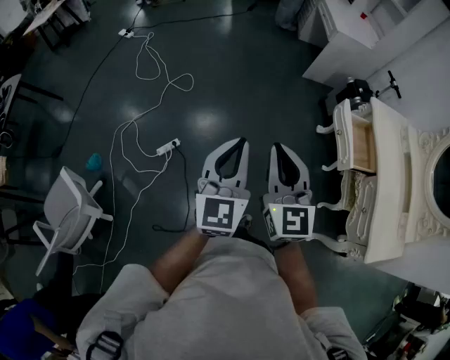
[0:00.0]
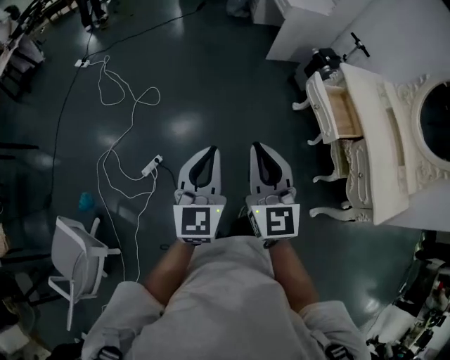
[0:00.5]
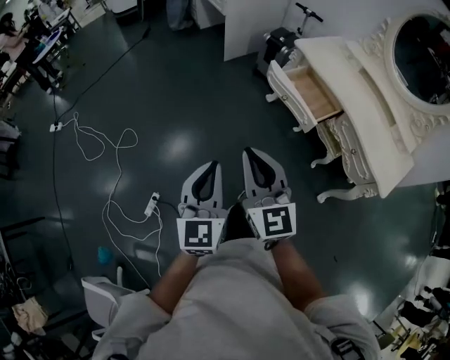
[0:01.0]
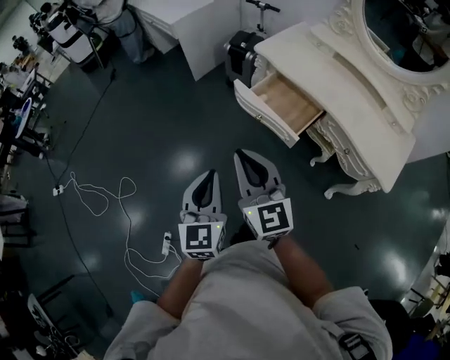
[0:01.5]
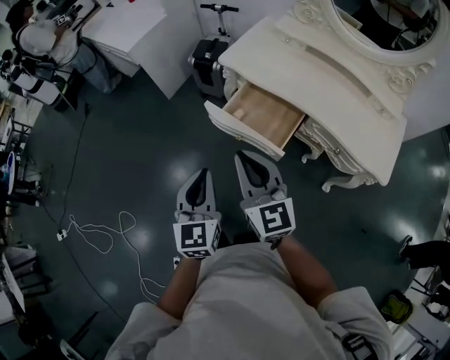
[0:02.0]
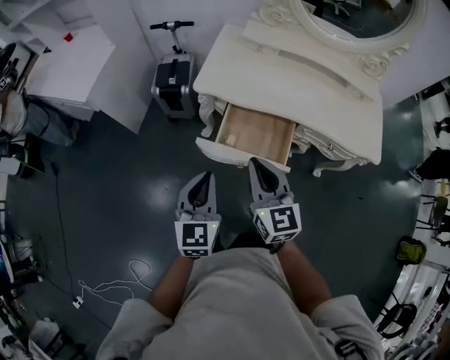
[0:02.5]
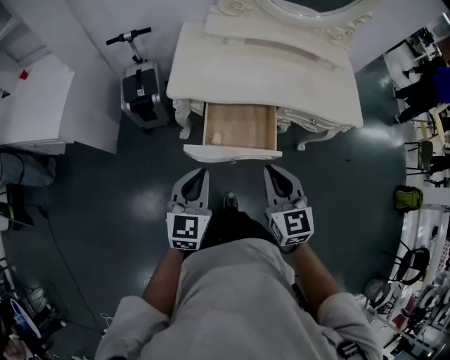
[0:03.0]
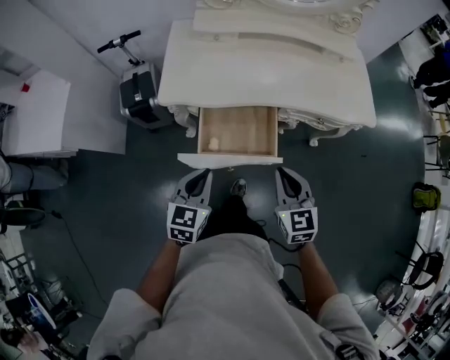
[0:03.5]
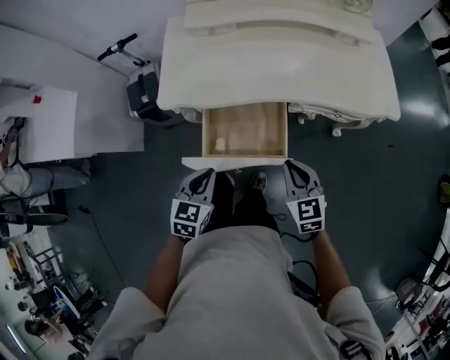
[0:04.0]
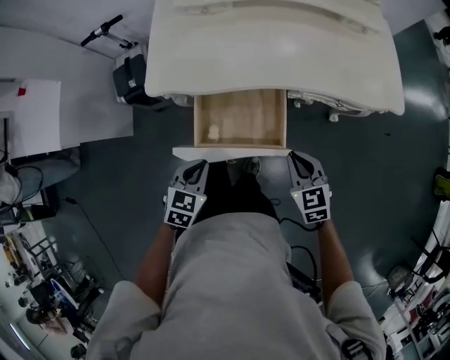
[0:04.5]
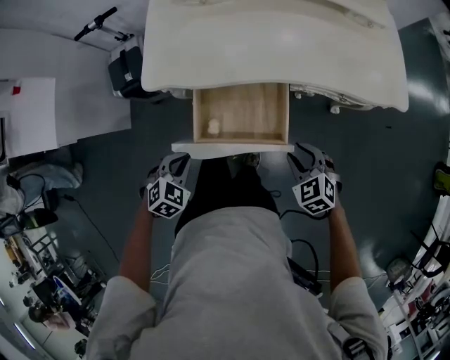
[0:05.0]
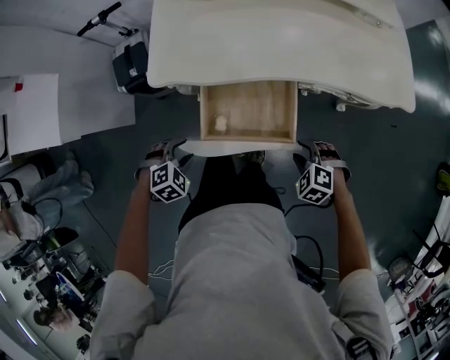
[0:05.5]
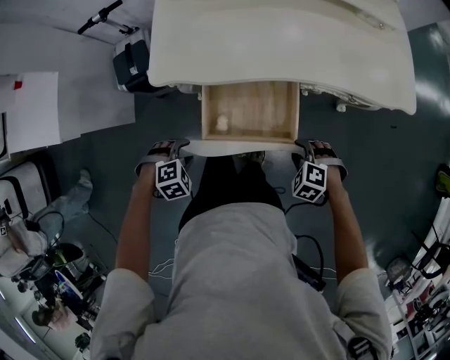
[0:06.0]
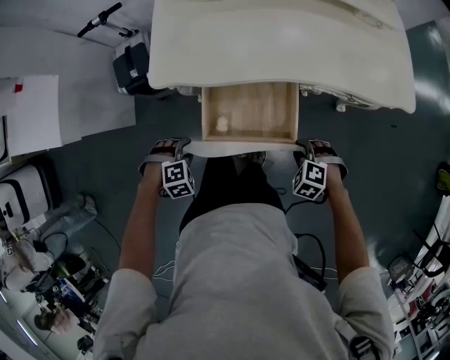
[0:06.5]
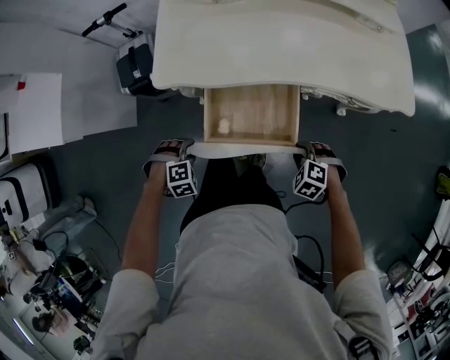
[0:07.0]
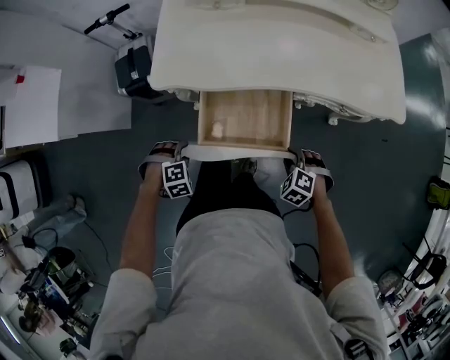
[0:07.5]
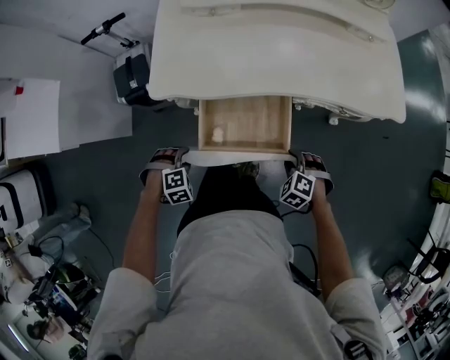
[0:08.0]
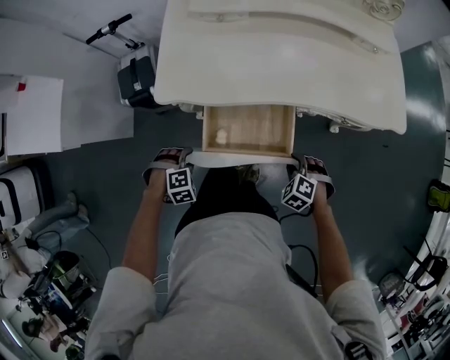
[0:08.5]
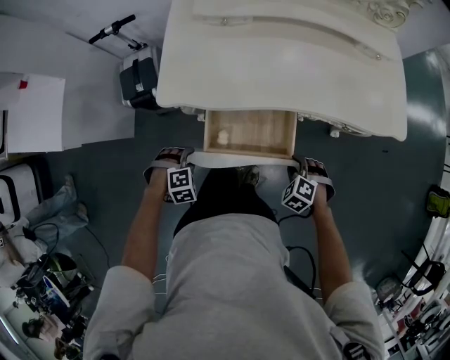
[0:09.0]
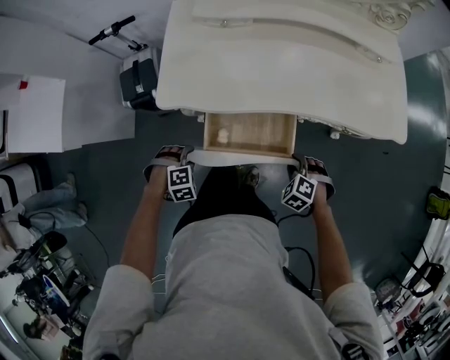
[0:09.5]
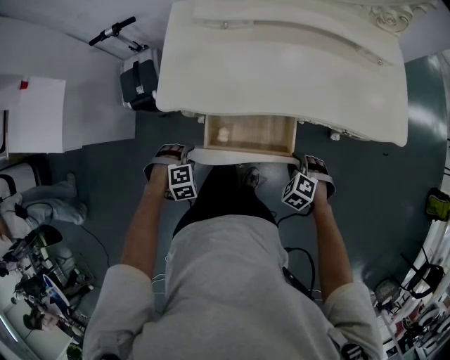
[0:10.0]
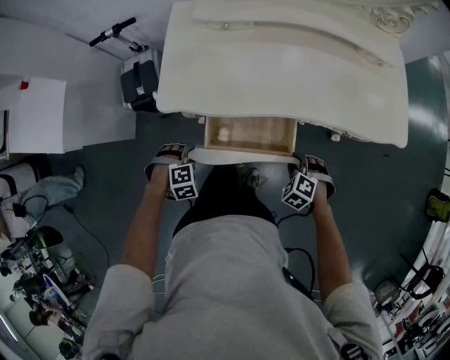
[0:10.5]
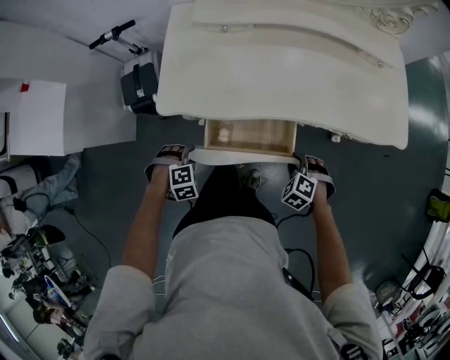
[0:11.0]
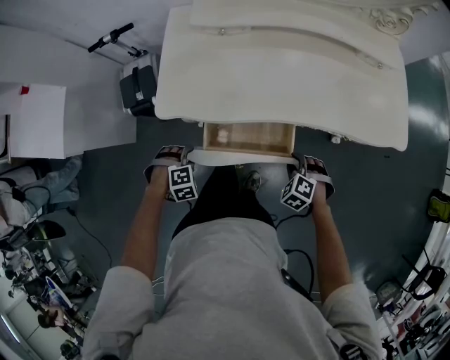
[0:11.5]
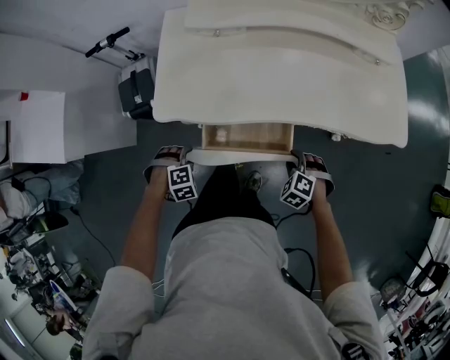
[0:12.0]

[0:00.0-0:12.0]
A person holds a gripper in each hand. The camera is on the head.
0:00.0 to 0:02.0: The pair of grippers is taken approximately 50 cm. The right gripper swivels some 50 degrees. The left gripper changes its angle by approximately 50 degrees.
0:02.0 to 0:04.0: The left gripper moves about 30 cm, and changes its angle by some 60 degrees, while the right gripper goes approximately 20 cm downward, and swivels some 50 degrees.
0:04.0 to 0:06.0: The grippers both shift downward by some 15 cm. The left gripper points its fingers some 40 degrees further downward, and opens. The right gripper angles its fingers downward, by some 40 degrees, and opens its fingers.
0:06.0 to 0:08.0: The grippers make only small movements.
0:08.0 to 0:10.0: The left gripper moves approximately 5 cm. Meanwhile the right gripper changes place by some 5 cm.
0:10.0 to 0:12.0: The grippers move only a little.

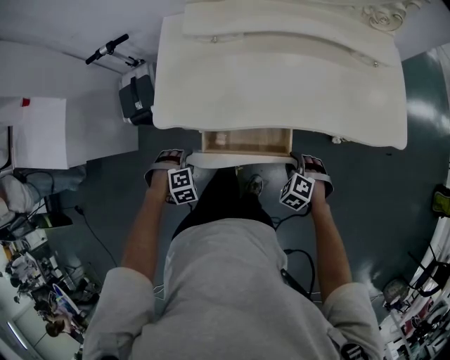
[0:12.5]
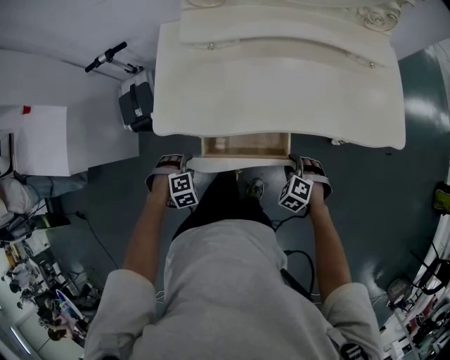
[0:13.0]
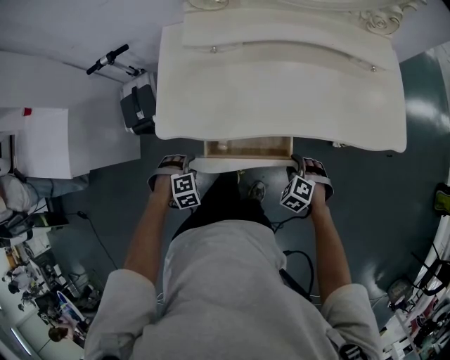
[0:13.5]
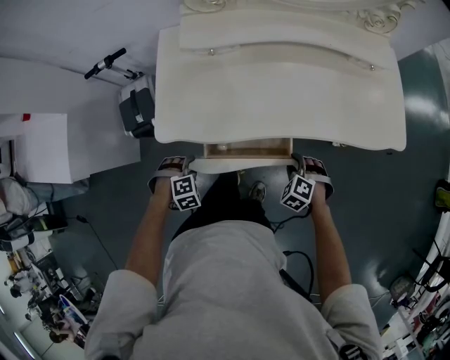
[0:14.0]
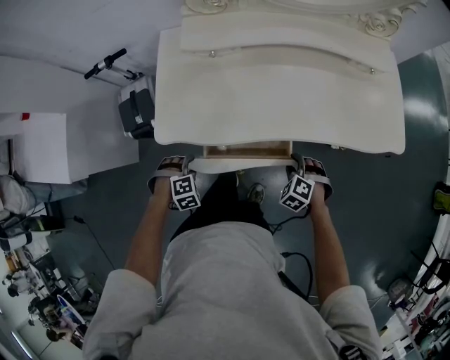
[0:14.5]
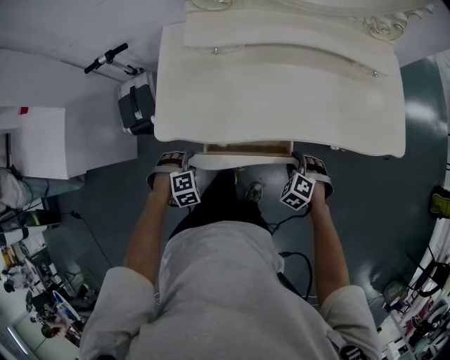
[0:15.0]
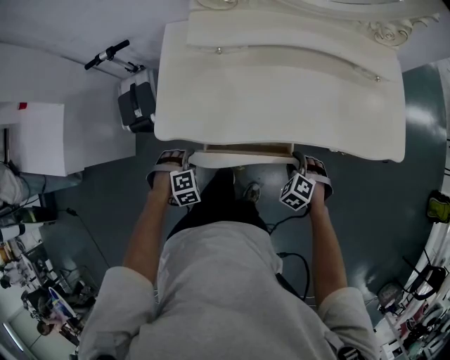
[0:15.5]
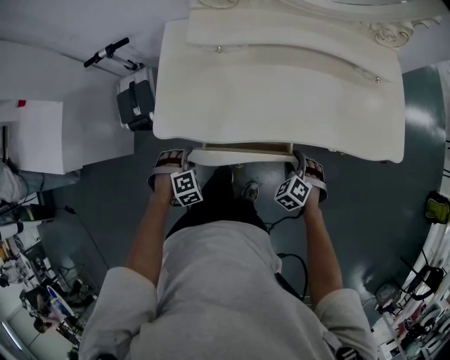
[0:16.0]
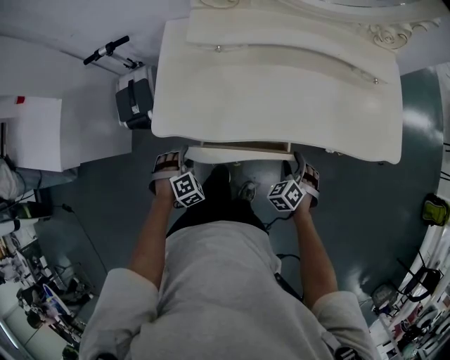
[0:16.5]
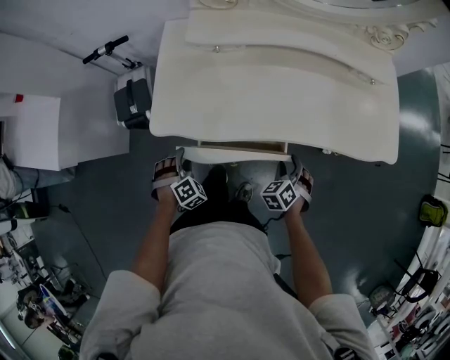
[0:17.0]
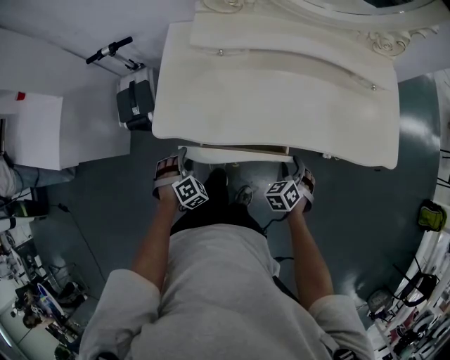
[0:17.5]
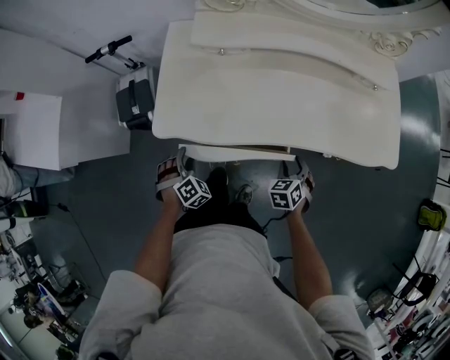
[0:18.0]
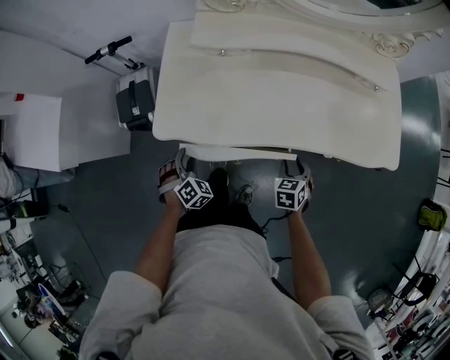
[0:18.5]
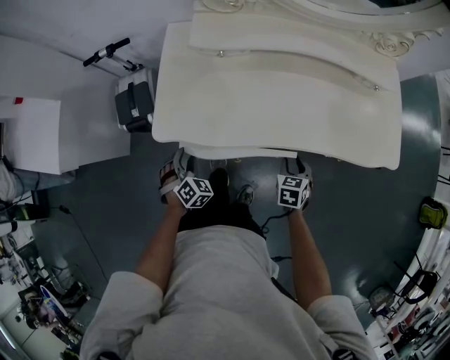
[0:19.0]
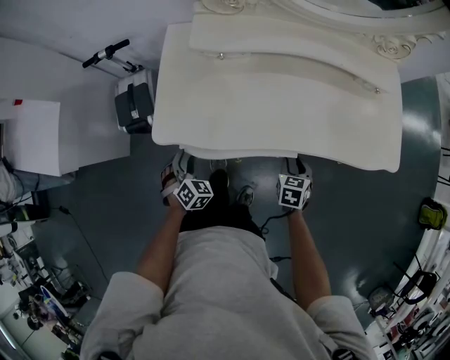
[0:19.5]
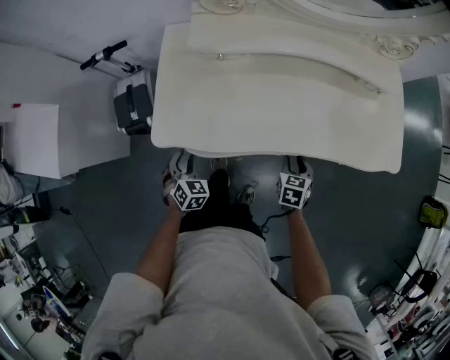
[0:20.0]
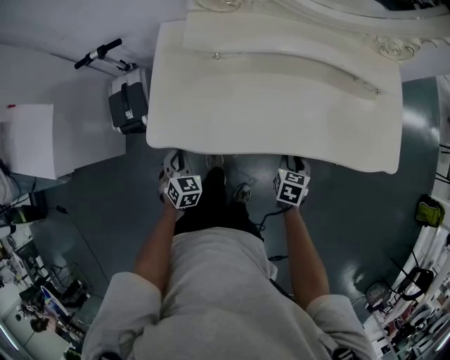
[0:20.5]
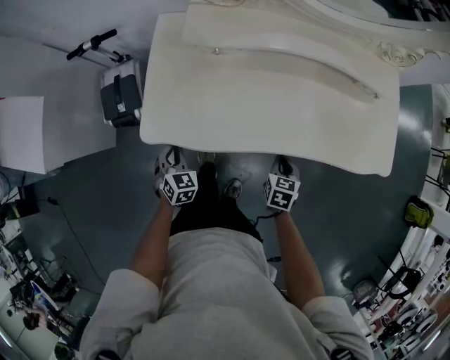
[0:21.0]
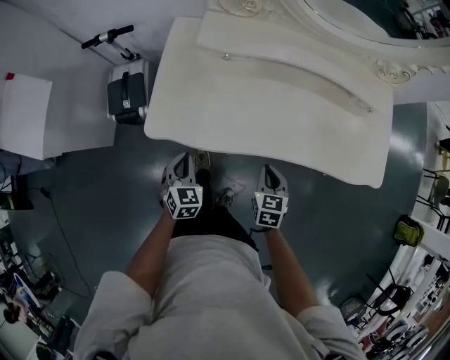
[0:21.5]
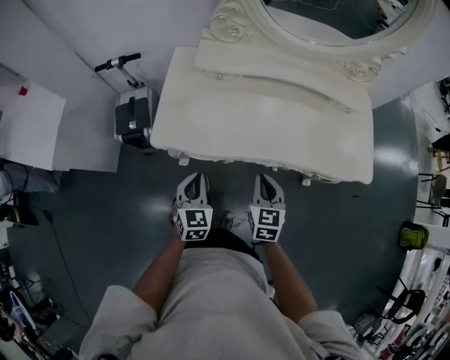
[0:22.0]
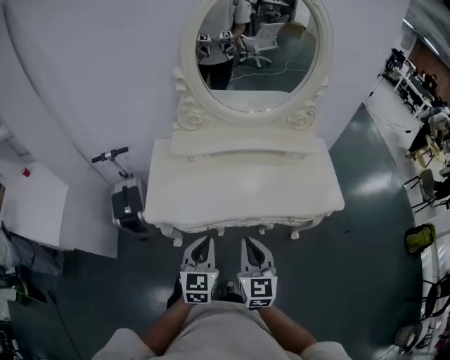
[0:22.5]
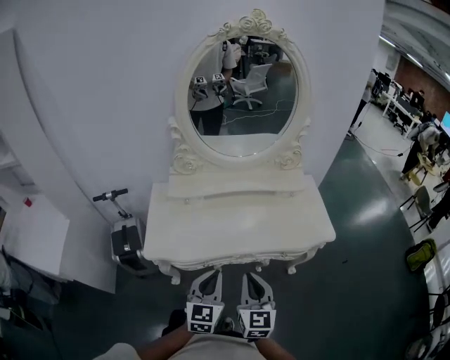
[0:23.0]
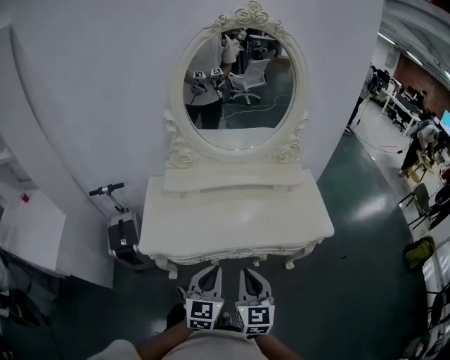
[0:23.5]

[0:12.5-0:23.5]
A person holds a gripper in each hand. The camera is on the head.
0:12.5 to 0:16.0: The grippers move only a little.
0:16.0 to 0:18.0: The right gripper turns by about 30 degrees. The left gripper changes its angle by roughly 30 degrees.
0:18.0 to 0:20.0: The right gripper rotates about 20 degrees. Meanwhile the left gripper turns by some 30 degrees.
0:20.0 to 0:21.5: The right gripper travels to the left by about 5 cm, and closes; the left gripper shifts by some 5 cm, and closes.
0:21.5 to 0:23.5: The left gripper is displaced upward and to the right by approximately 35 cm, and changes its angle by some 40 degrees; the right gripper shifts roughly 30 cm upward and backward, and tips its fingers upward by some 40 degrees.

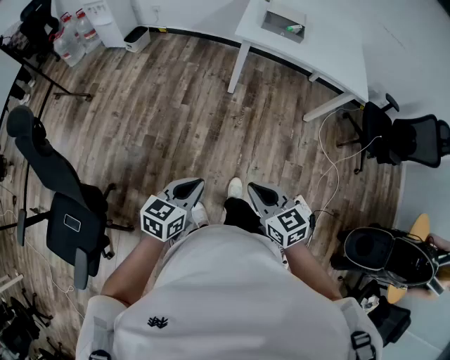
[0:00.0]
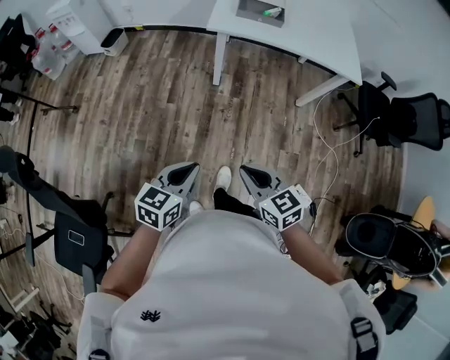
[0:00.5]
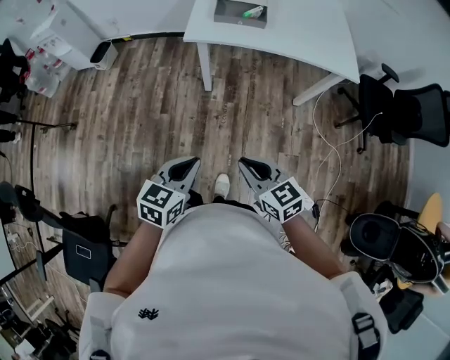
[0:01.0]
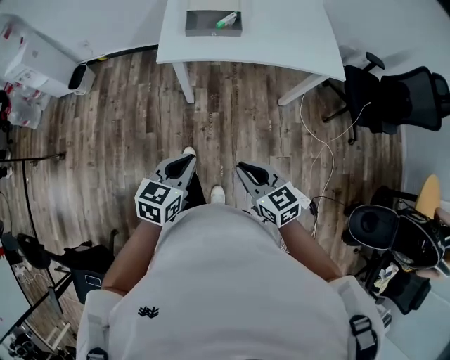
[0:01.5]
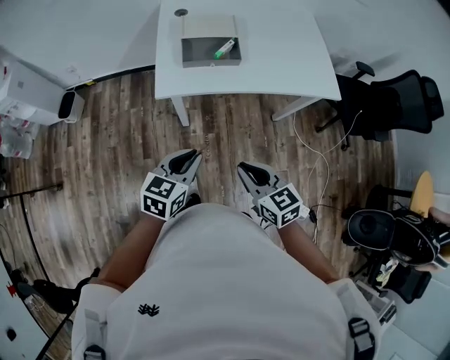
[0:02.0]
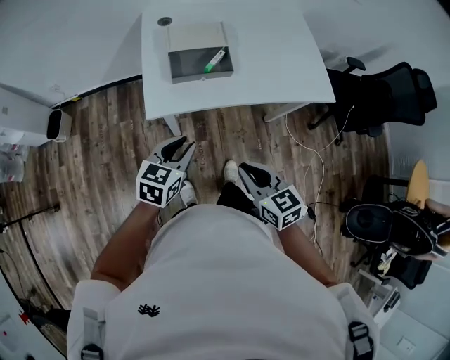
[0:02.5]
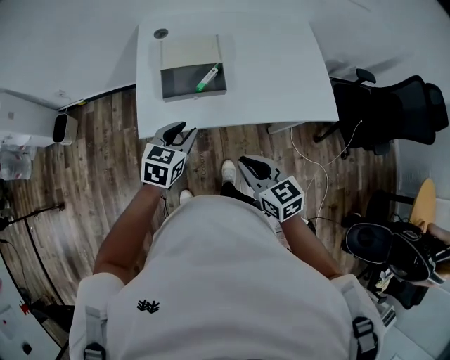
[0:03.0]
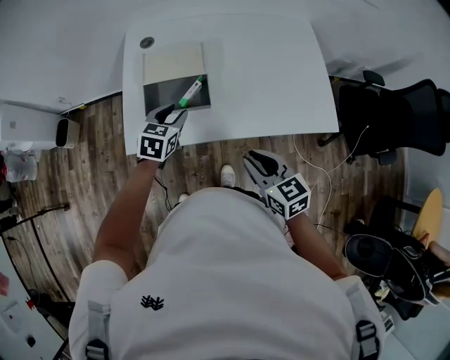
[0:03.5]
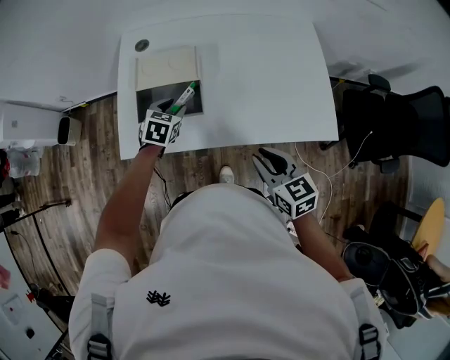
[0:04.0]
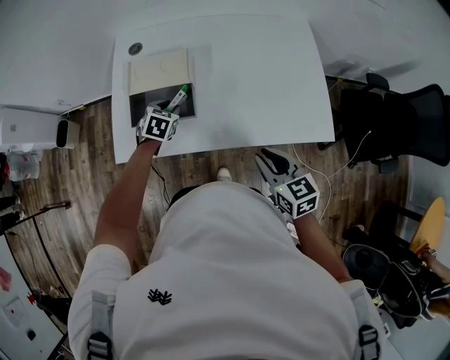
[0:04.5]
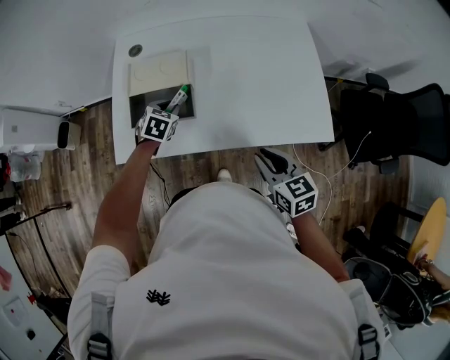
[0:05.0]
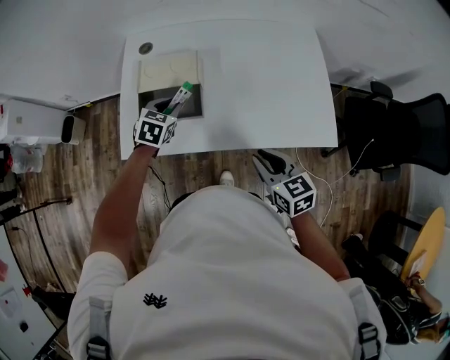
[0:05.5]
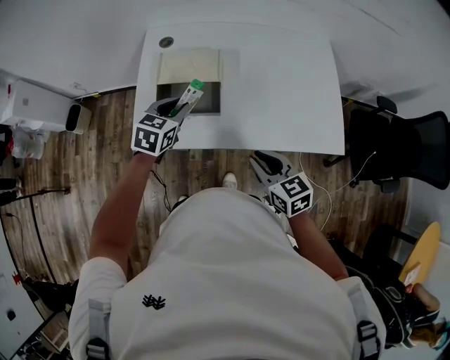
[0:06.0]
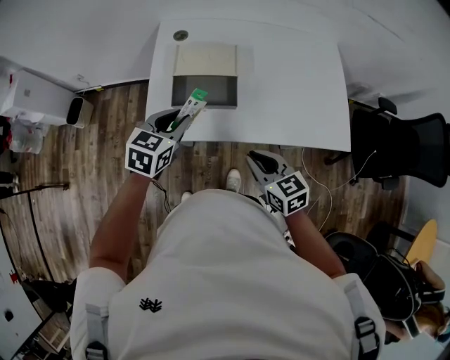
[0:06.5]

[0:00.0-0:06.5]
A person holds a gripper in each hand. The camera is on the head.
0:00.0 to 0:02.0: Both grippers move forward, roughly 40 cm.
0:02.0 to 0:04.5: The left gripper goes roughly 40 cm forward, rotates roughly 30 degrees, and opens up. Meanwhile the right gripper heads to the right and forward, covering roughly 35 cm.
0:04.5 to 0:06.5: The right gripper travels to the left by about 15 cm, while the left gripper moves upward, backward and to the left, roughly 20 cm, and changes its angle by some 20 degrees.
